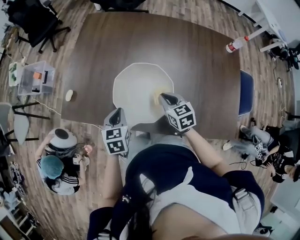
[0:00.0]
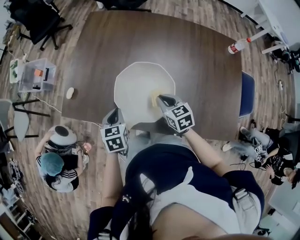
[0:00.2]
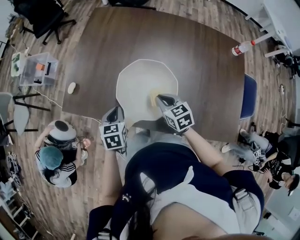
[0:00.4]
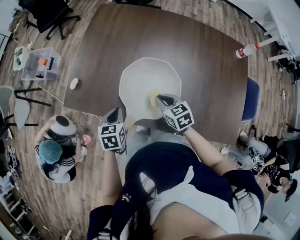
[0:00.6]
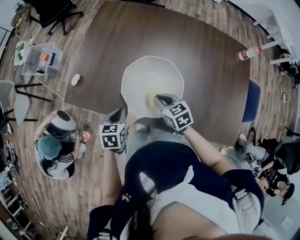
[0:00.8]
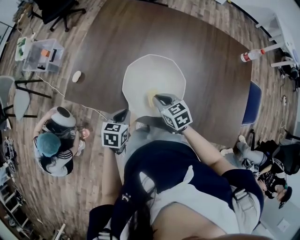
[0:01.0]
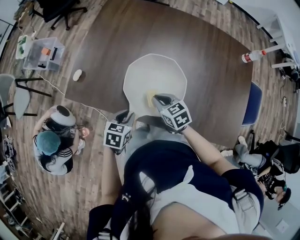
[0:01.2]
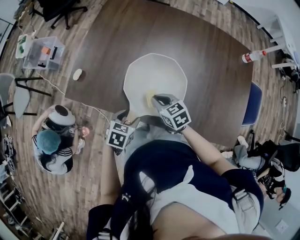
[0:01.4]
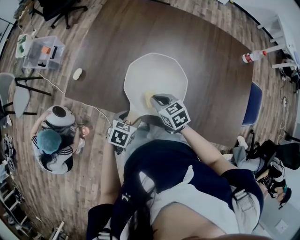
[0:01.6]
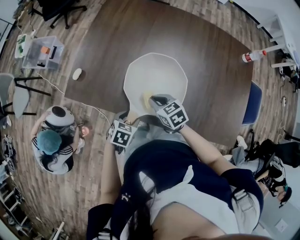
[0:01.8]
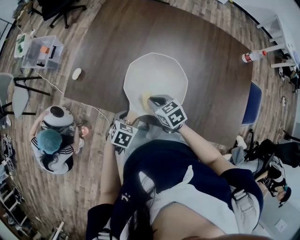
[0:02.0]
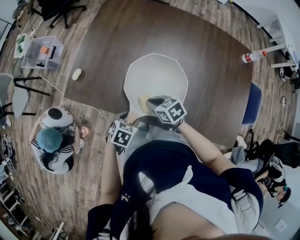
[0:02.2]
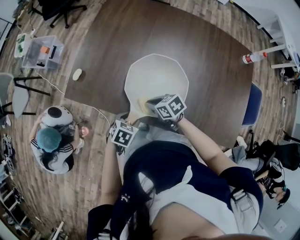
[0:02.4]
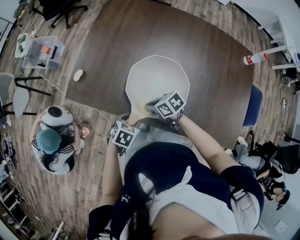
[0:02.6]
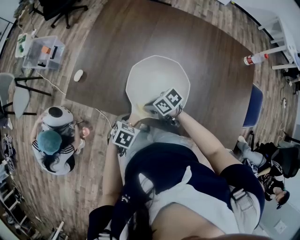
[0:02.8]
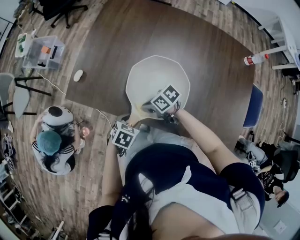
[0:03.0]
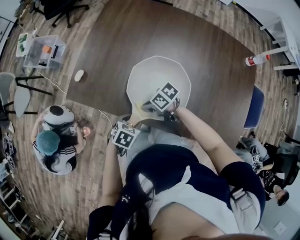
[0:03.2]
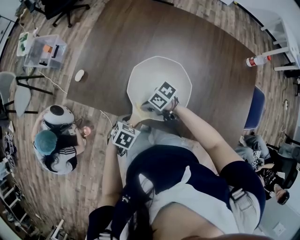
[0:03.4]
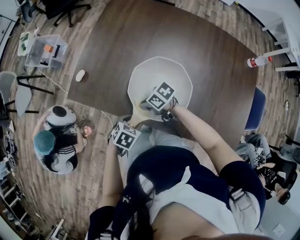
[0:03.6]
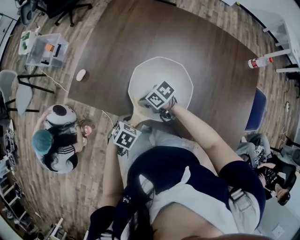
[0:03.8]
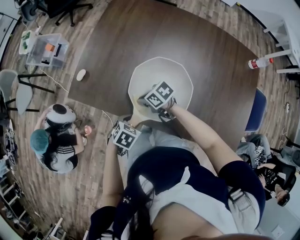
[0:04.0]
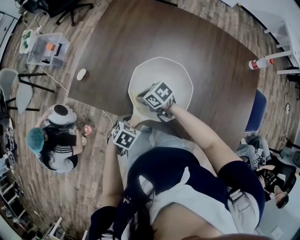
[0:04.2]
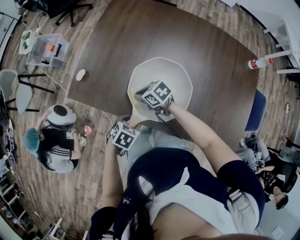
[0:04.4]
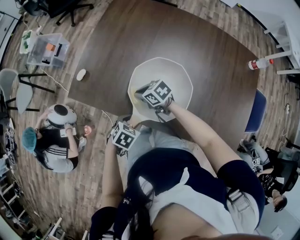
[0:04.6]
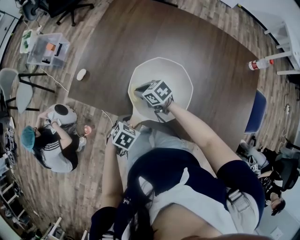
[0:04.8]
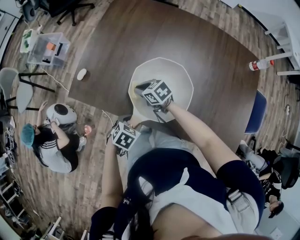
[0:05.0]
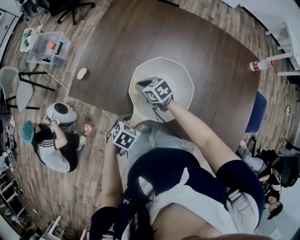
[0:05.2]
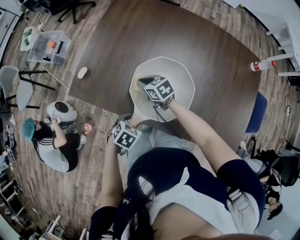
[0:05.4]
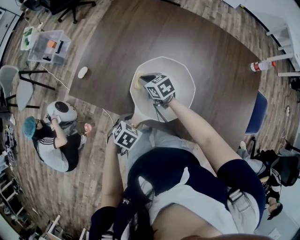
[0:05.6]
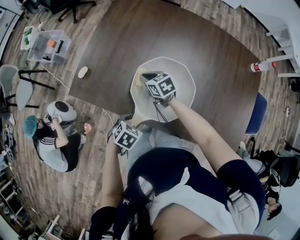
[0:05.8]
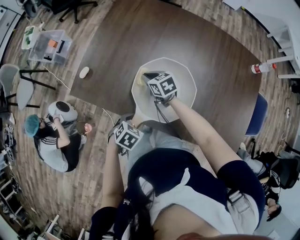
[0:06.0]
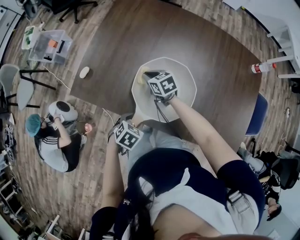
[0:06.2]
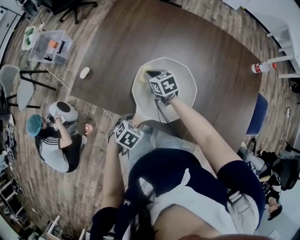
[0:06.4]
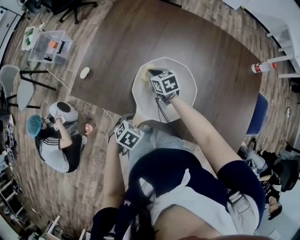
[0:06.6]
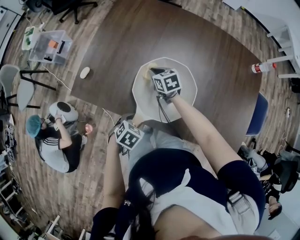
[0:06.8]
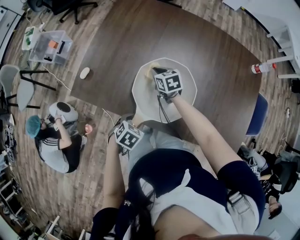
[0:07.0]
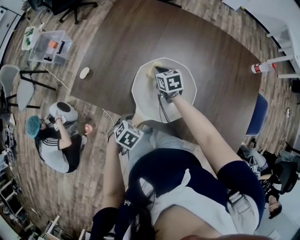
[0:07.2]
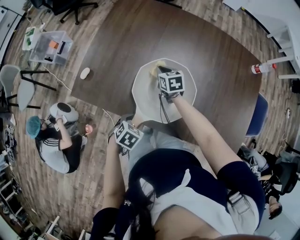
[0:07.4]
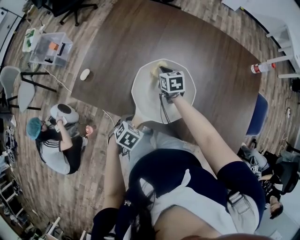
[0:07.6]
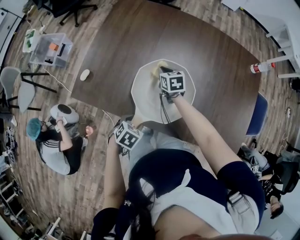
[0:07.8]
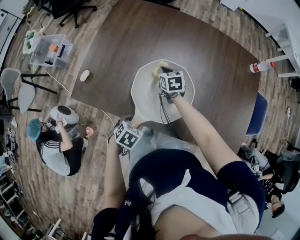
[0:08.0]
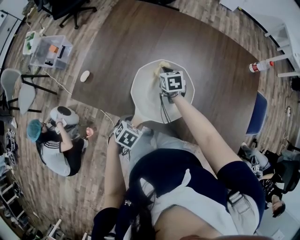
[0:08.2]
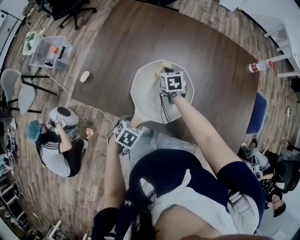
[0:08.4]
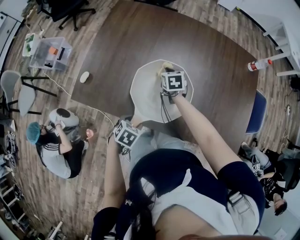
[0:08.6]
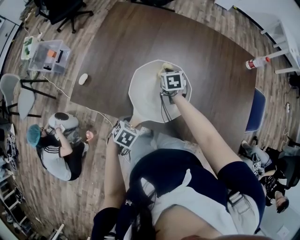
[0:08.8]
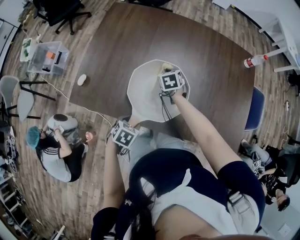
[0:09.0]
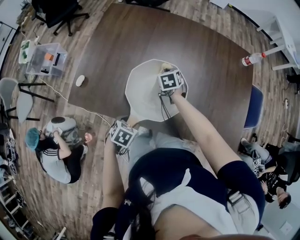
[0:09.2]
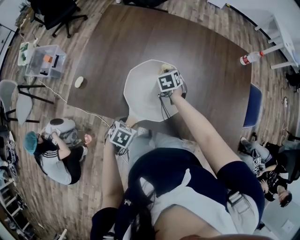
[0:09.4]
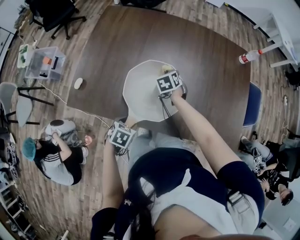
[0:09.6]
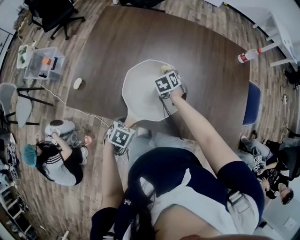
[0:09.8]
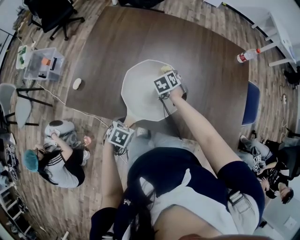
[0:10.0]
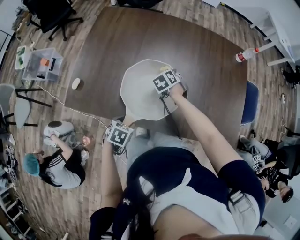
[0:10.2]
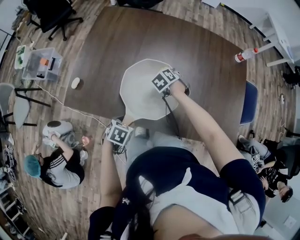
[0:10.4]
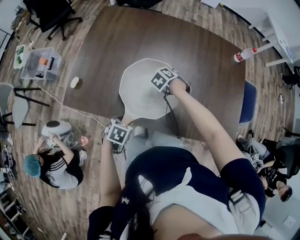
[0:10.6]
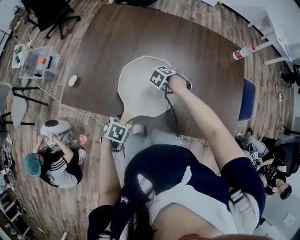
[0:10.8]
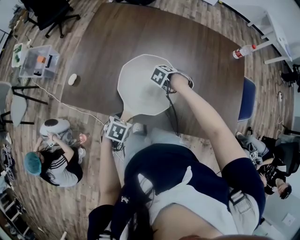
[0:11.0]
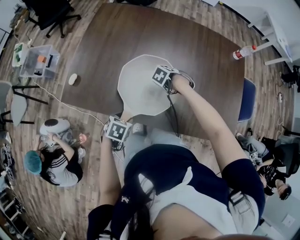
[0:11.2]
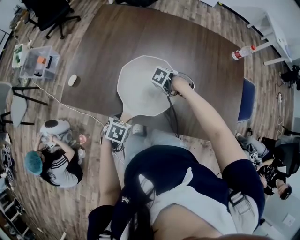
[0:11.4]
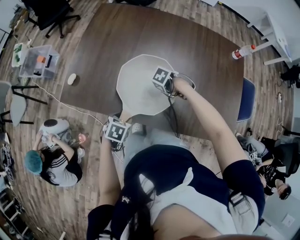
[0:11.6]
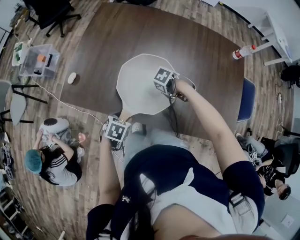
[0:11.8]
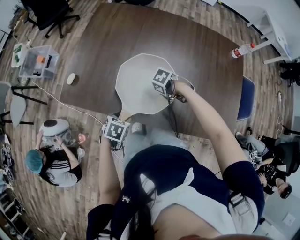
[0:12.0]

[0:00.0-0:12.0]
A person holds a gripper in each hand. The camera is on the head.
0:00.0 to 0:01.6: The right gripper is displaced to the left by about 10 cm, while the left gripper is displaced backward and downward by approximately 10 cm, changes its angle by roughly 30 degrees, and opens up.
0:01.6 to 0:03.0: The right gripper shifts by some 10 cm, and changes its angle by some 40 degrees.
0:03.0 to 0:04.4: The right gripper ends up approximately 5 cm from where it was.
0:04.4 to 0:06.0: The right gripper moves roughly 10 cm, and changes its angle by approximately 20 degrees.
0:06.0 to 0:07.6: The right gripper goes about 10 cm to the right and forward, and turns by about 20 degrees.
0:07.6 to 0:09.0: The right gripper is displaced to the right by roughly 5 cm.
0:09.0 to 0:10.4: The right gripper goes approximately 5 cm to the right, and rotates some 30 degrees.
0:10.4 to 0:12.0: The right gripper changes place by about 15 cm, and turns by roughly 40 degrees.

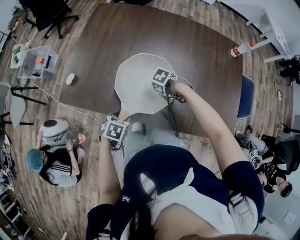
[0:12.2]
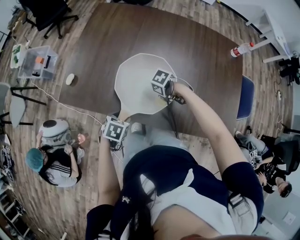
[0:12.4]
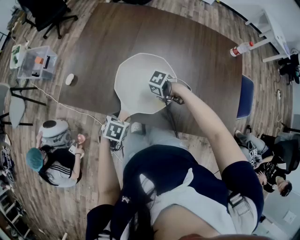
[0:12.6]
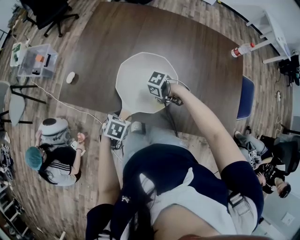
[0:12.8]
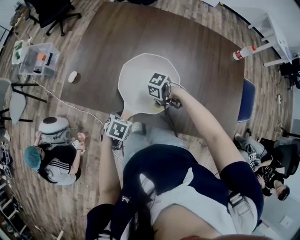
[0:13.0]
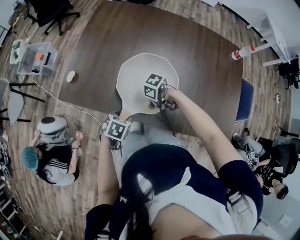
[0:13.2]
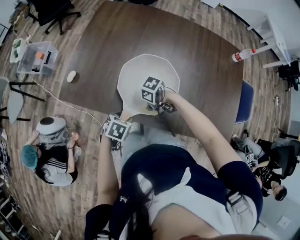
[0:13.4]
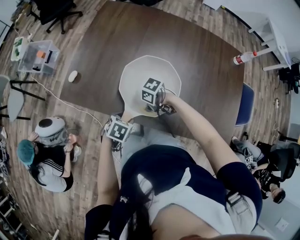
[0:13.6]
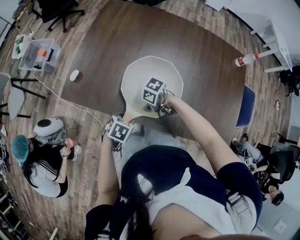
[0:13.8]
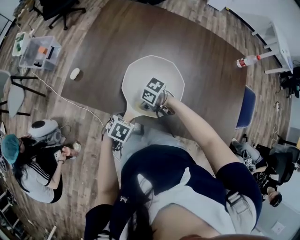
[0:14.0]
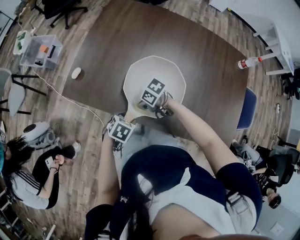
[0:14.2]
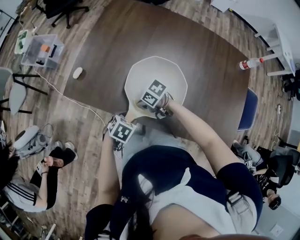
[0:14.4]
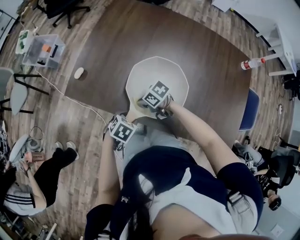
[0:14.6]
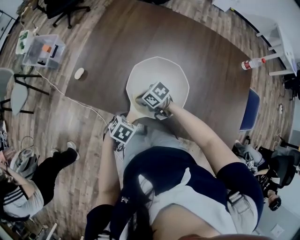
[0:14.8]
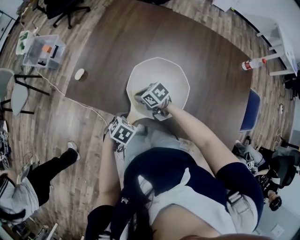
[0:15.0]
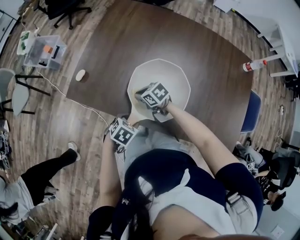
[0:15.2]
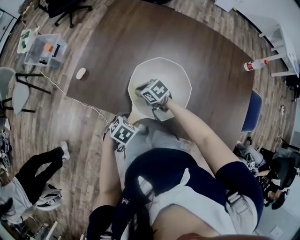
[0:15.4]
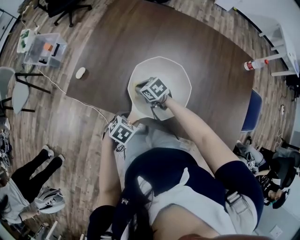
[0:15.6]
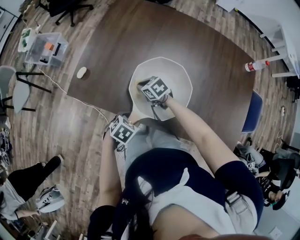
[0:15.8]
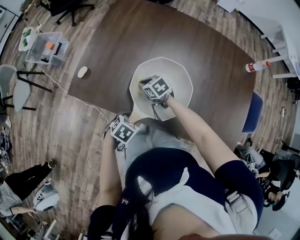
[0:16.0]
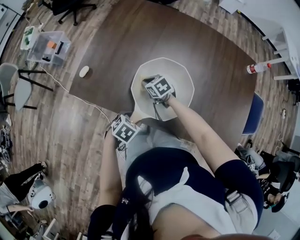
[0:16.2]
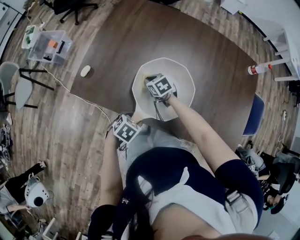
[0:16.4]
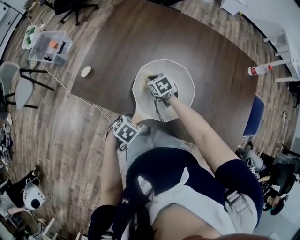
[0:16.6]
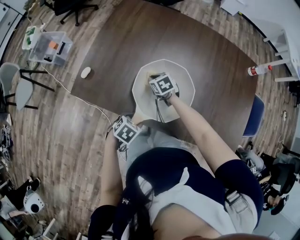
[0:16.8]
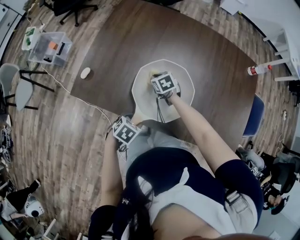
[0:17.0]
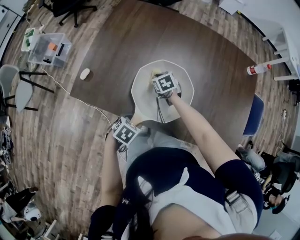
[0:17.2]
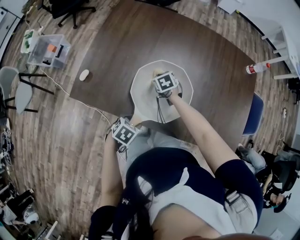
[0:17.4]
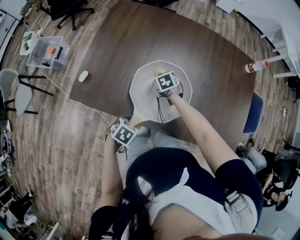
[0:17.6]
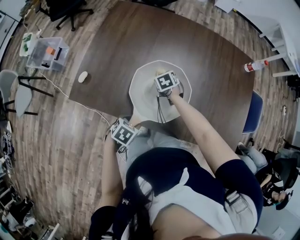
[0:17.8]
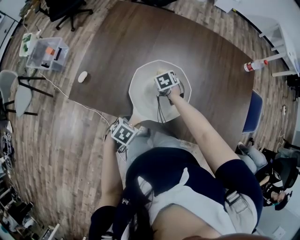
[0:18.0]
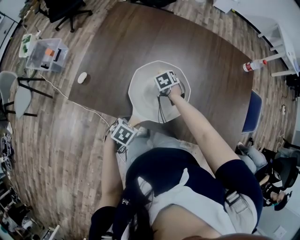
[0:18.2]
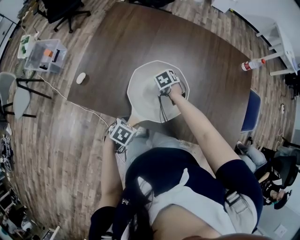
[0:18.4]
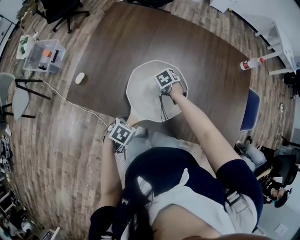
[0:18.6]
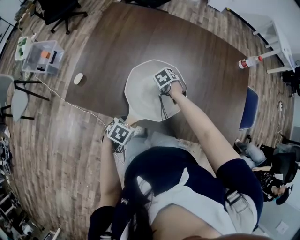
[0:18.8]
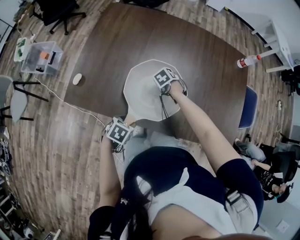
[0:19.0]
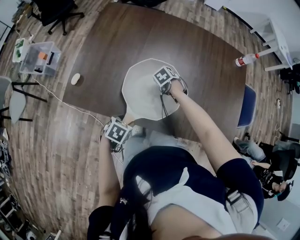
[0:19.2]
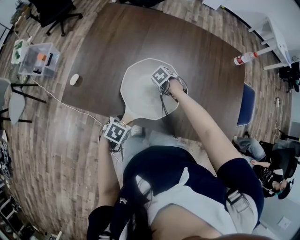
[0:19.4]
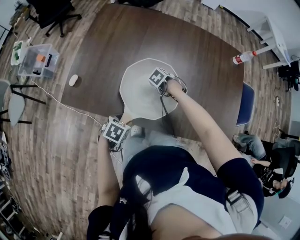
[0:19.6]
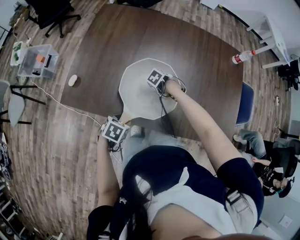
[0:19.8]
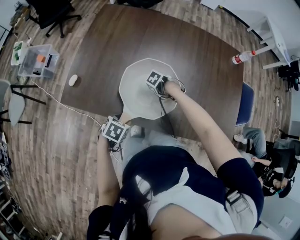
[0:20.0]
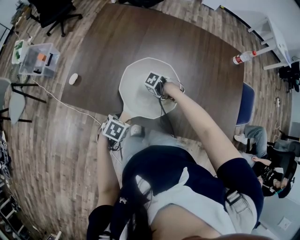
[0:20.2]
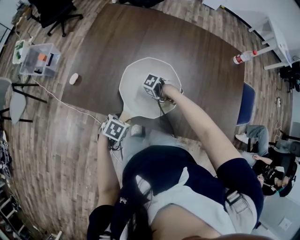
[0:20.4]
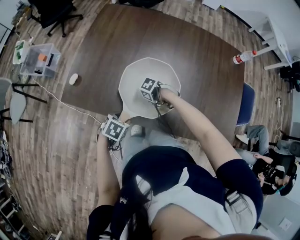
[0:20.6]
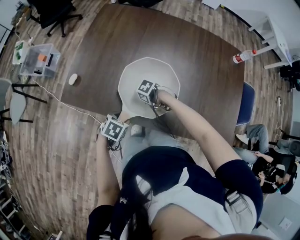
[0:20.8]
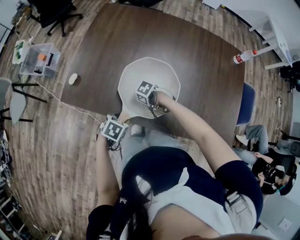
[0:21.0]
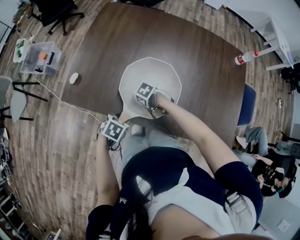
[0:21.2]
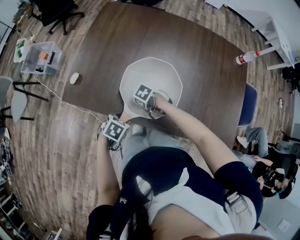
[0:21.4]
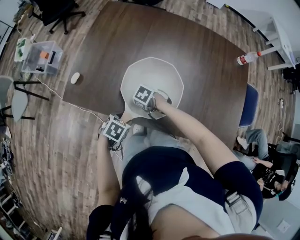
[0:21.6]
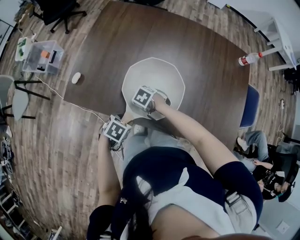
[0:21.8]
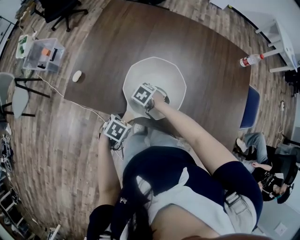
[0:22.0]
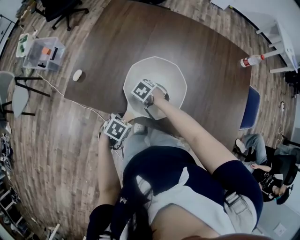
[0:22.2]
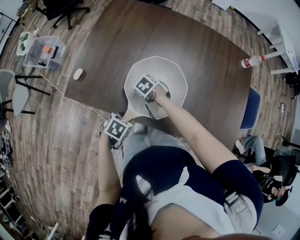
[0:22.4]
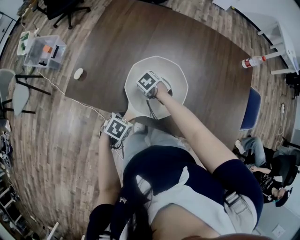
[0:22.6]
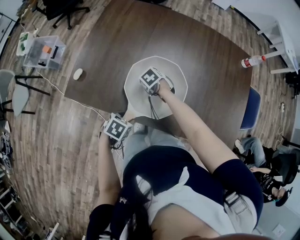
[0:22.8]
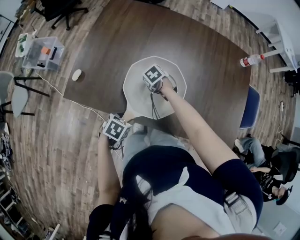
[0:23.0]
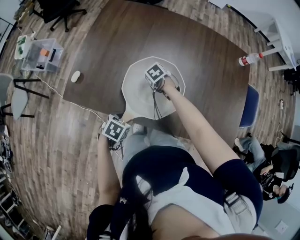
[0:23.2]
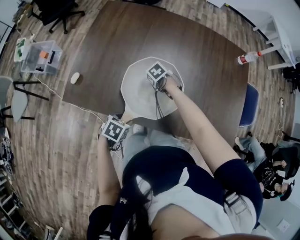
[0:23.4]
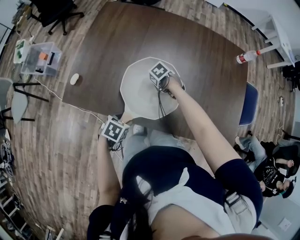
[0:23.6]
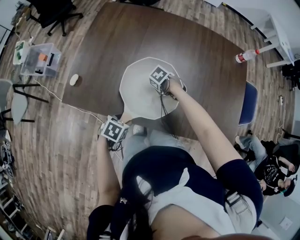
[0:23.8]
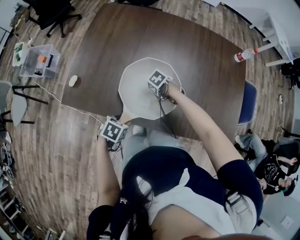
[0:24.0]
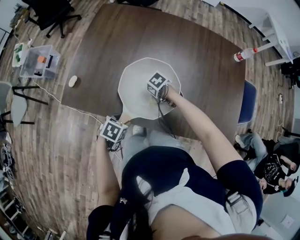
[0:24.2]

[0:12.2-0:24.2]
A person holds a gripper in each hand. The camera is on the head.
0:12.2 to 0:13.8: The right gripper shifts by roughly 15 cm, and swivels about 20 degrees.
0:13.8 to 0:15.2: The right gripper shifts by some 10 cm, and rotates approximately 40 degrees.
0:15.2 to 0:16.6: The right gripper shifts by about 10 cm, and rotates roughly 20 degrees.
0:16.6 to 0:18.2: The right gripper travels to the right and forward by approximately 10 cm, and turns by about 20 degrees.
0:18.2 to 0:19.8: The right gripper shifts by about 10 cm, and swivels roughly 40 degrees.
0:19.8 to 0:21.2: The right gripper moves some 15 cm, and swivels about 20 degrees.
0:21.2 to 0:22.6: The right gripper changes place by about 15 cm, and rotates approximately 30 degrees.
0:22.6 to 0:24.2: The right gripper changes place by approximately 10 cm, and changes its angle by approximately 20 degrees.
